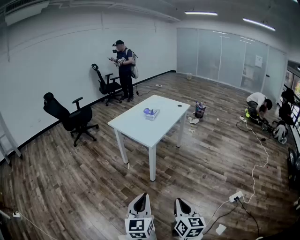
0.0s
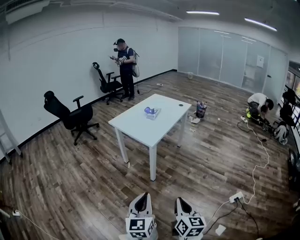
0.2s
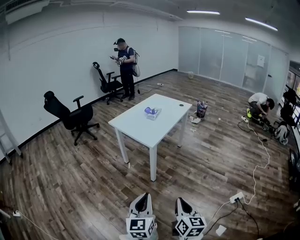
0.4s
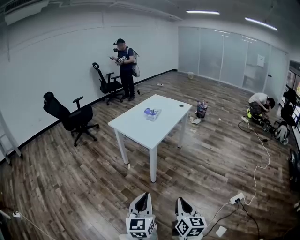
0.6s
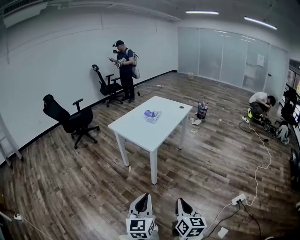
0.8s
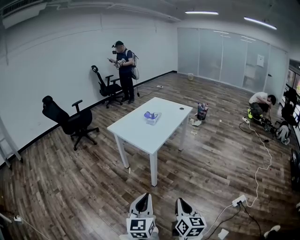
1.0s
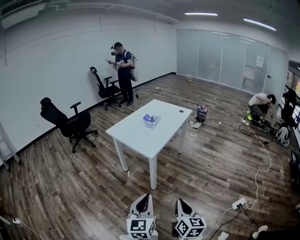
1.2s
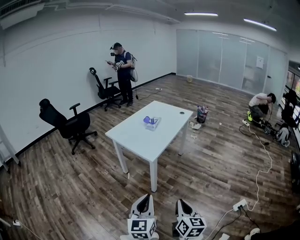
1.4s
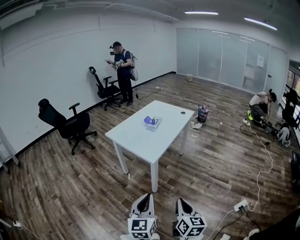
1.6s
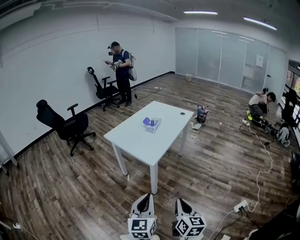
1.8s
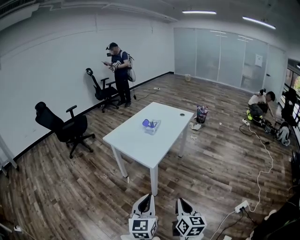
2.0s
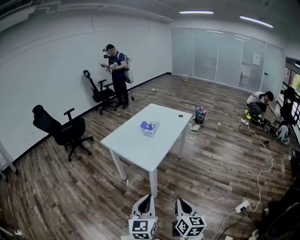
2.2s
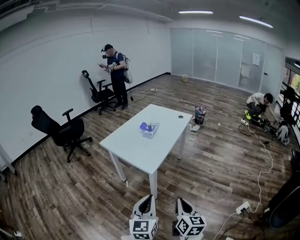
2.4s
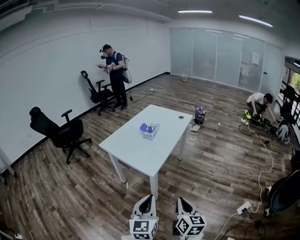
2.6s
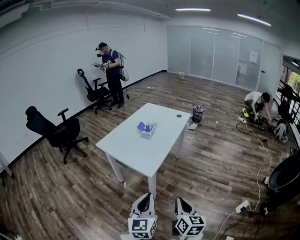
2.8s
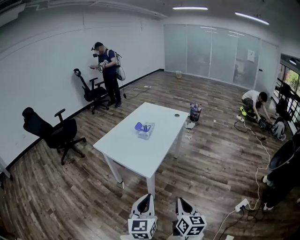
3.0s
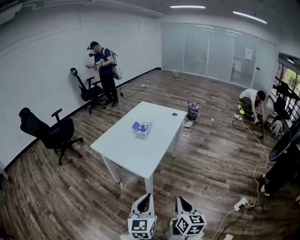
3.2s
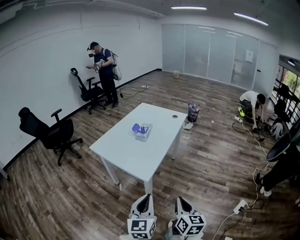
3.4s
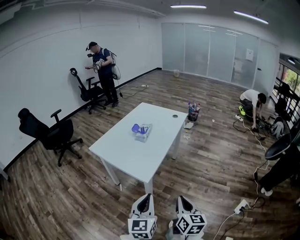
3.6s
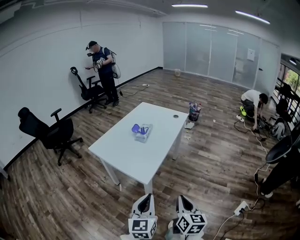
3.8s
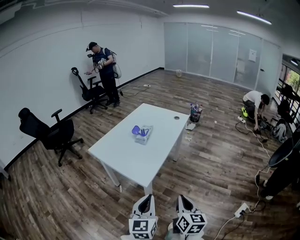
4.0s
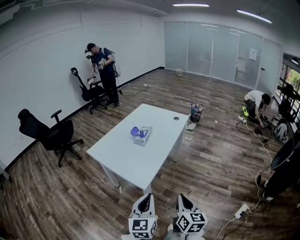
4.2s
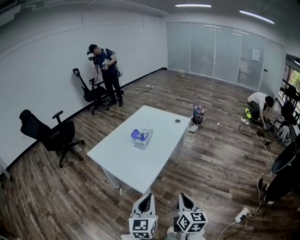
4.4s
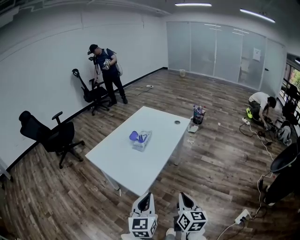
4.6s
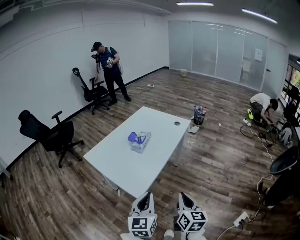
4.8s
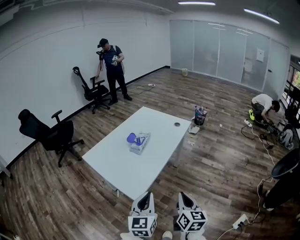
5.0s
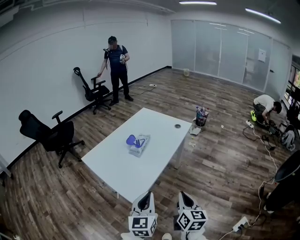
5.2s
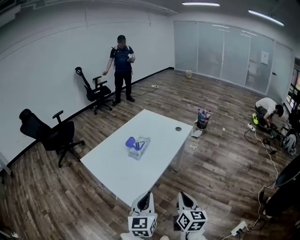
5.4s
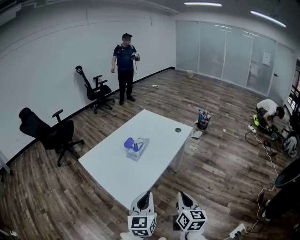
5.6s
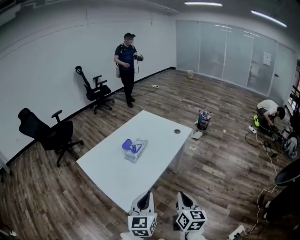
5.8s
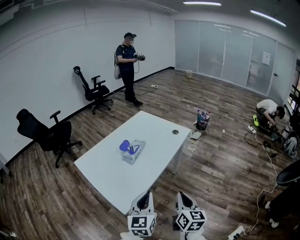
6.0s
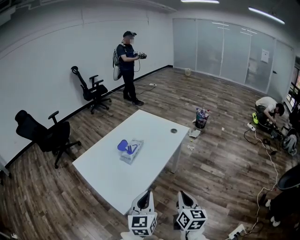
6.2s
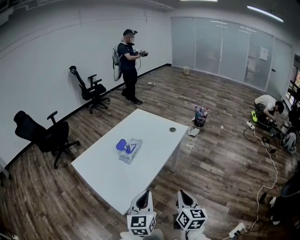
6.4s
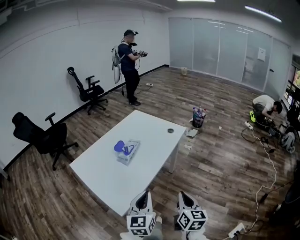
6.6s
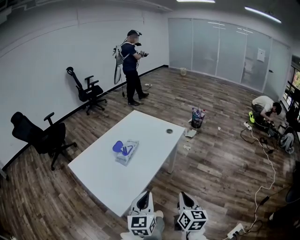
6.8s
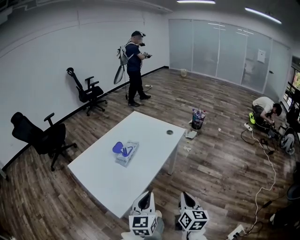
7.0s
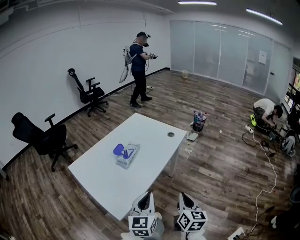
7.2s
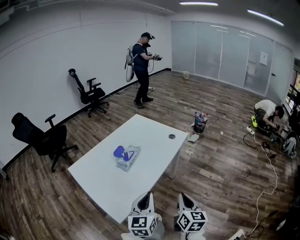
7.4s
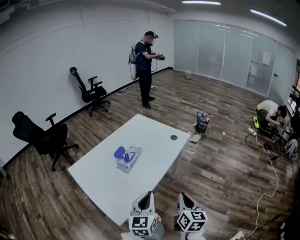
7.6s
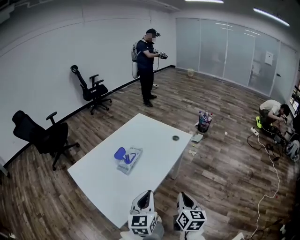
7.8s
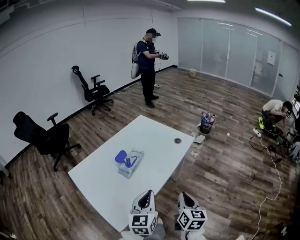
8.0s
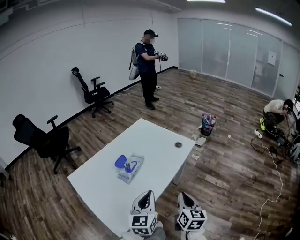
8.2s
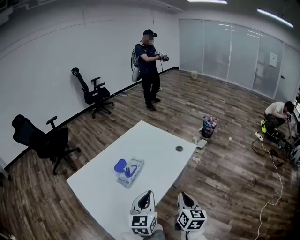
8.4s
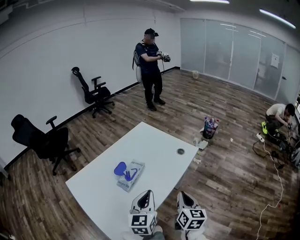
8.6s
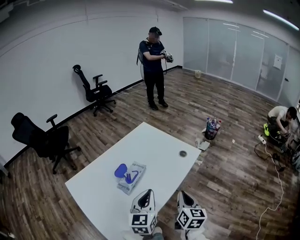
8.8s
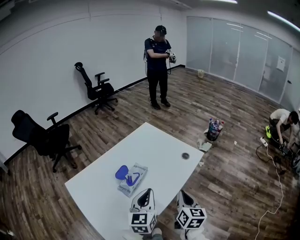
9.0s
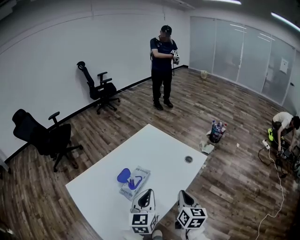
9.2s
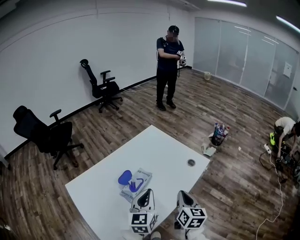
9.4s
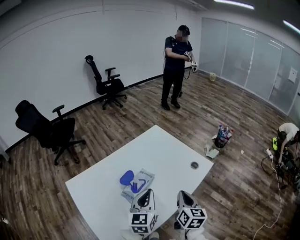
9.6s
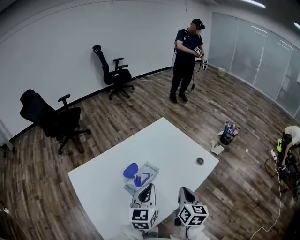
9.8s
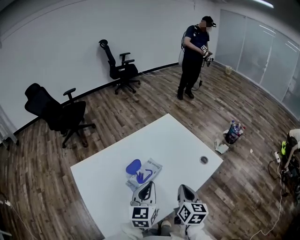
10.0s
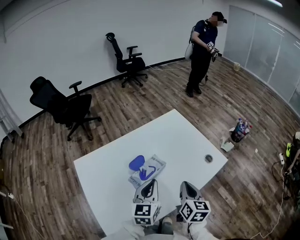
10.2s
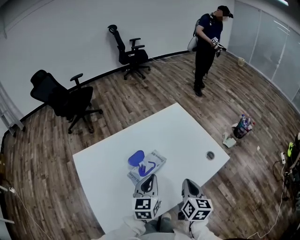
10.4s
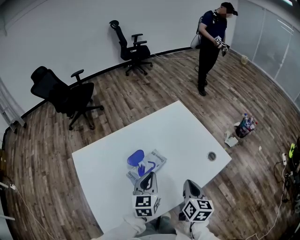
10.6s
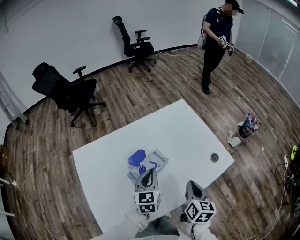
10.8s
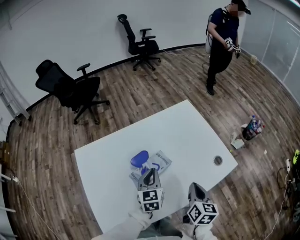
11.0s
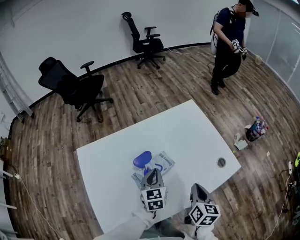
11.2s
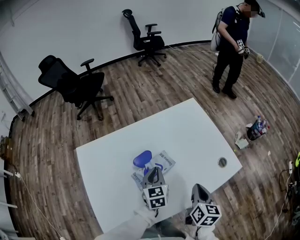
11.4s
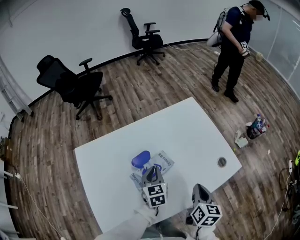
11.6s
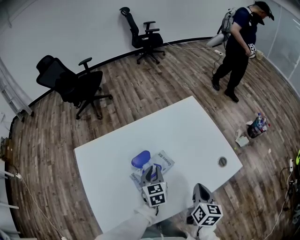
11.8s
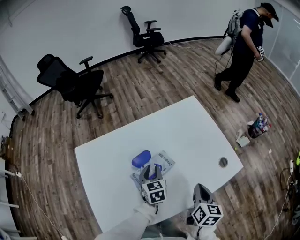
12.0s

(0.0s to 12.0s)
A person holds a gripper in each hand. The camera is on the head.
0.0s - 1.6s: Both grippers travel together forward, some 15 cm.
1.6s - 3.0s: Both grippers move forward, roughly 15 cm.
3.0s - 4.4s: The grippers both shift forward by roughly 10 cm.
4.4s - 6.0s: Both grippers travel together forward and to the right, approximately 20 cm.
6.0s - 7.6s: Both grippers travel together forward, approximately 5 cm.
7.6s - 9.0s: The two grippers go roughly 20 cm forward.
9.0s - 10.4s: The left gripper heads forward, downward and to the left, covering approximately 10 cm. The right gripper moves forward, approximately 10 cm.
10.4s - 12.0s: The left gripper goes roughly 15 cm downward and forward, swivels some 30 degrees, and opens; the right gripper changes place by about 5 cm.

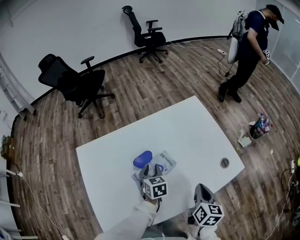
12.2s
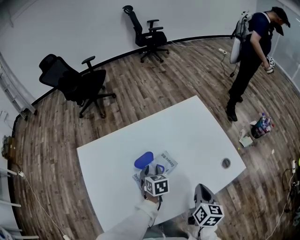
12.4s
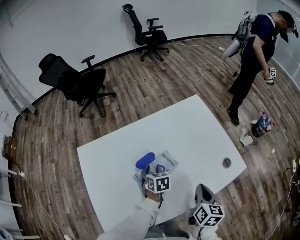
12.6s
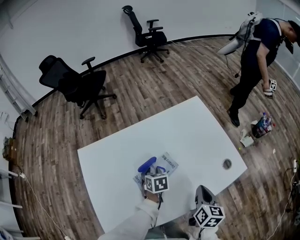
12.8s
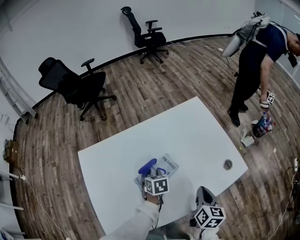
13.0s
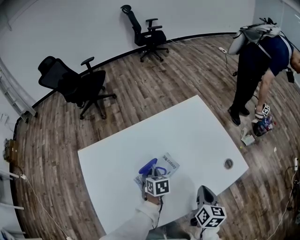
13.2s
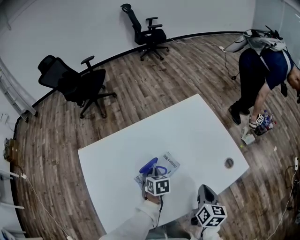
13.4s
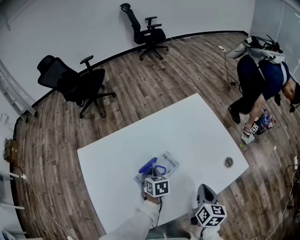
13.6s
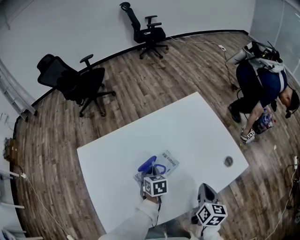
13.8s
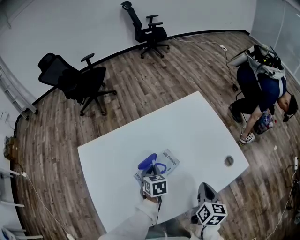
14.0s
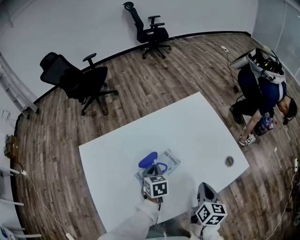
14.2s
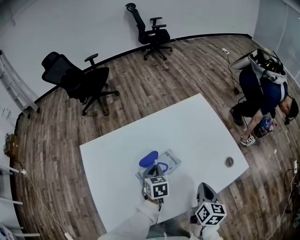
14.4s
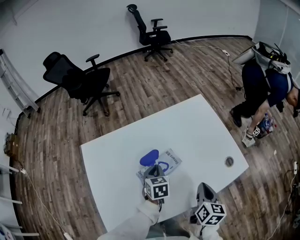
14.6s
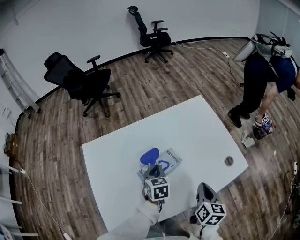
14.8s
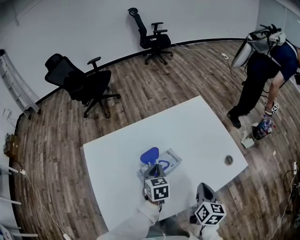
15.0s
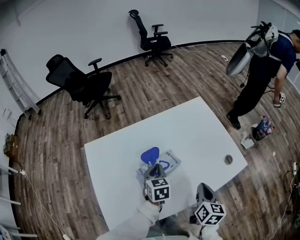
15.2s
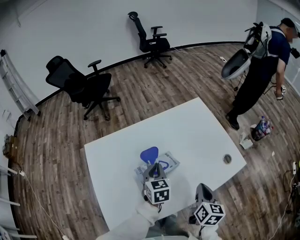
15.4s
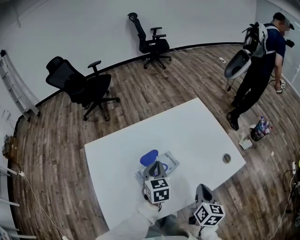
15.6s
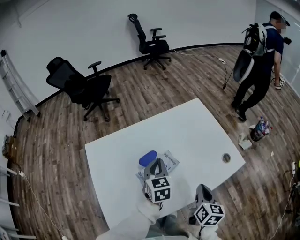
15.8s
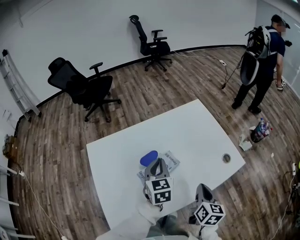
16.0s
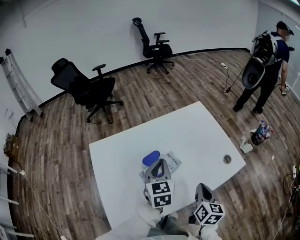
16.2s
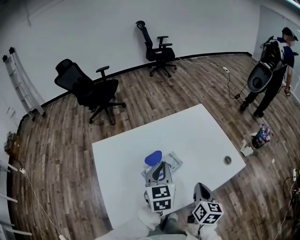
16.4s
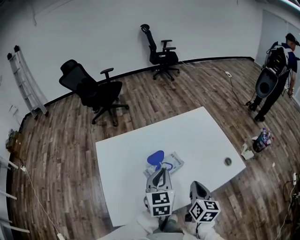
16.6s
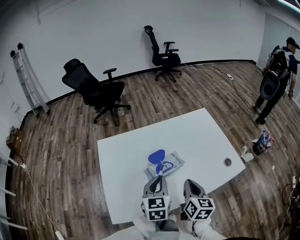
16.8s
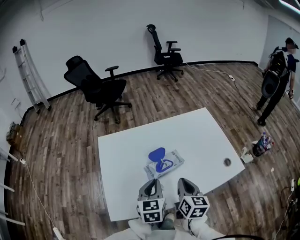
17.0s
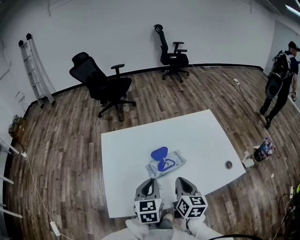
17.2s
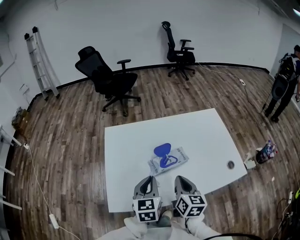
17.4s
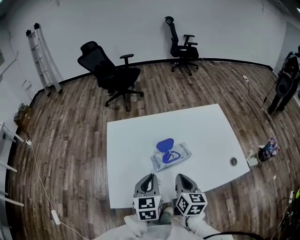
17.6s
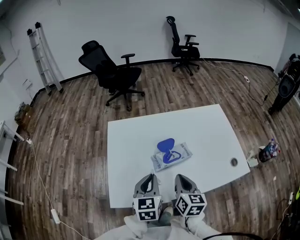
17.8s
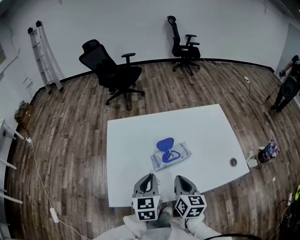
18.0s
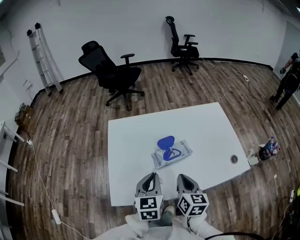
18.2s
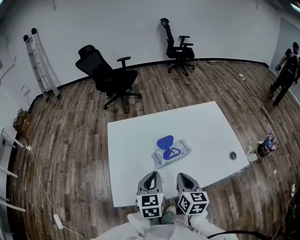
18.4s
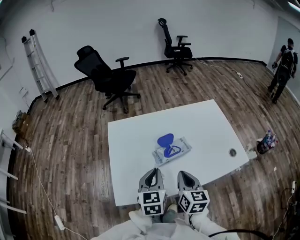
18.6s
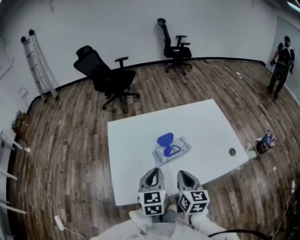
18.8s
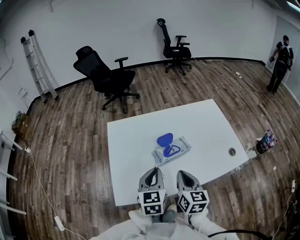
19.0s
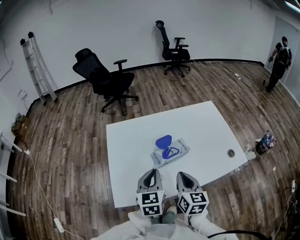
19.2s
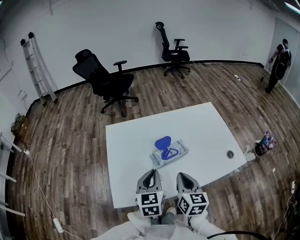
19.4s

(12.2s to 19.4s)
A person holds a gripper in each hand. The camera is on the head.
12.2s - 13.6s: The left gripper closes.
13.6s - 15.0s: The left gripper heads upward, covering about 5 cm.
15.0s - 16.6s: The right gripper shifts approximately 5 cm to the left; the left gripper goes about 15 cm upward and backward, and swivels about 20 degrees.
16.6s - 18.0s: The left gripper is displaced to the left and backward by roughly 10 cm, while the right gripper shifts approximately 10 cm to the left.
18.0s - 19.4s: The grippers move only a little.

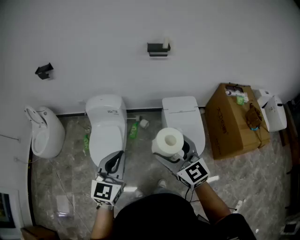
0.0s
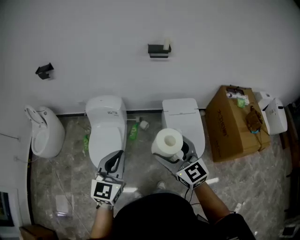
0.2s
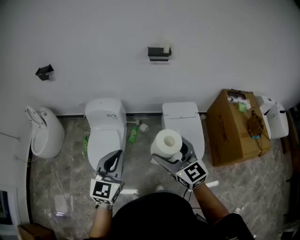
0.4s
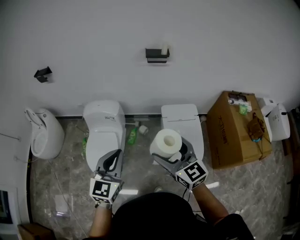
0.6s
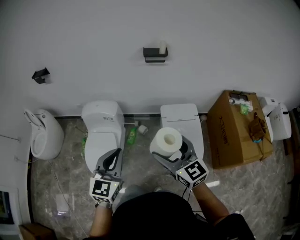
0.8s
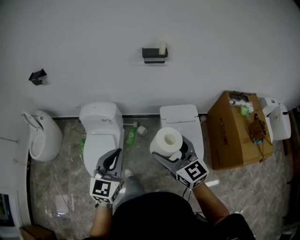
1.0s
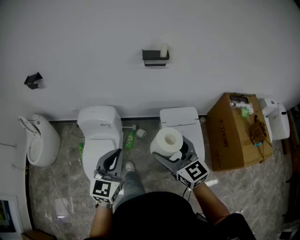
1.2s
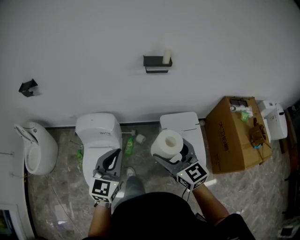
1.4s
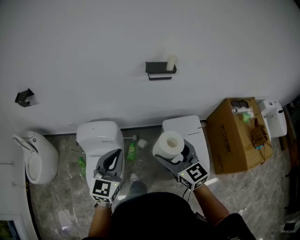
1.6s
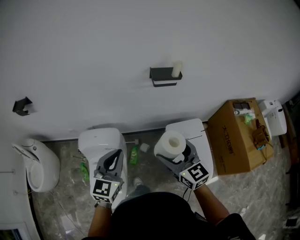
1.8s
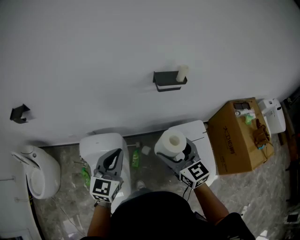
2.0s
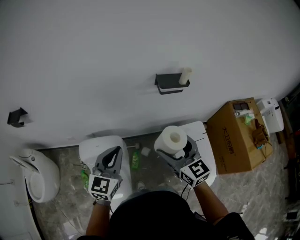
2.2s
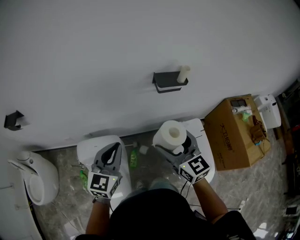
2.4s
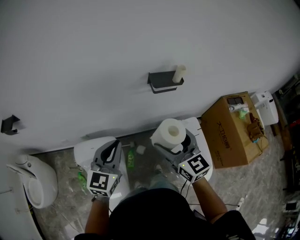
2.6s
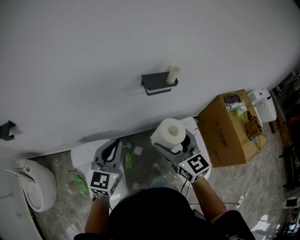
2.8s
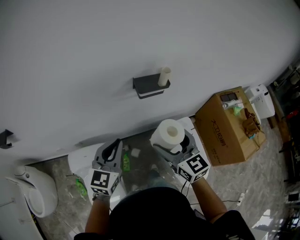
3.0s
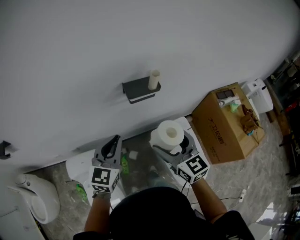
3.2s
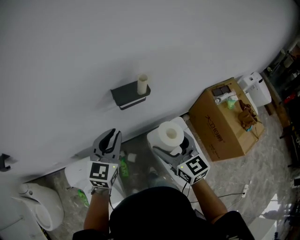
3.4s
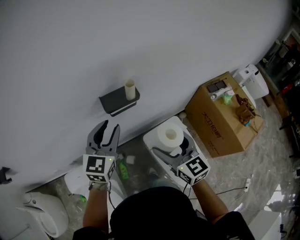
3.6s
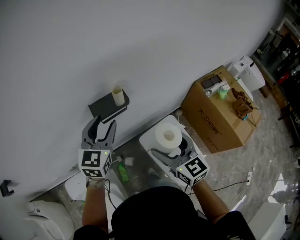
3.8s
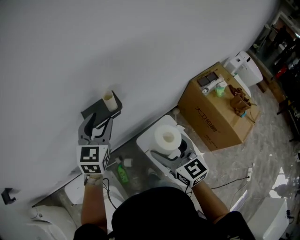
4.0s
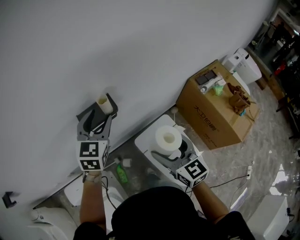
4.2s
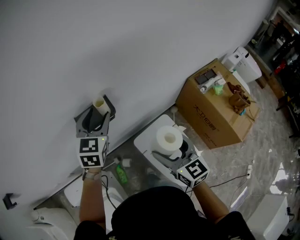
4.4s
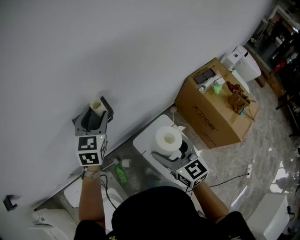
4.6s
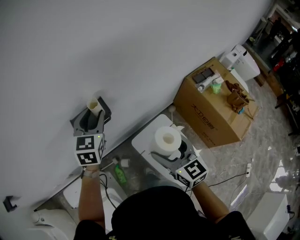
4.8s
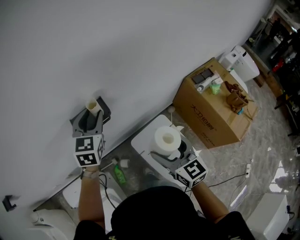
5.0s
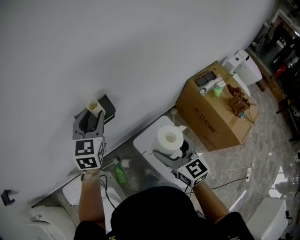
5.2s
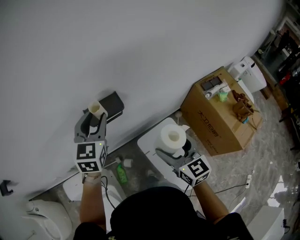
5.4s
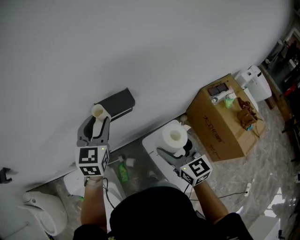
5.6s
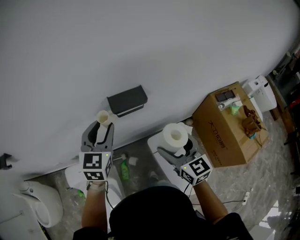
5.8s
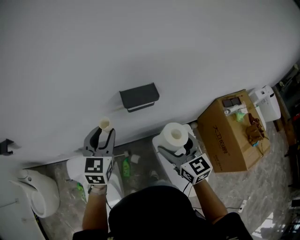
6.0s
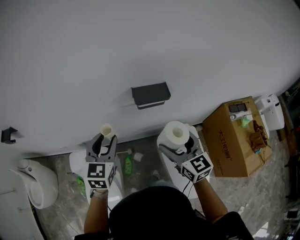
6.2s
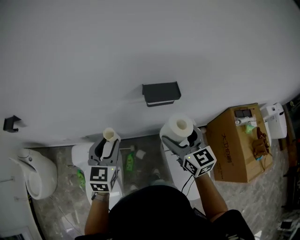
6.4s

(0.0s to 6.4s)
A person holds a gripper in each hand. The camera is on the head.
0.0s - 1.6s: Both grippers travel together forward, about 30 cm.
1.6s - 3.2s: Both grippers move forward, approximately 25 cm.
3.2s - 4.8s: The left gripper heads forward and to the right, covering roughly 30 cm, and opens; the right gripper heads to the right, covering roughly 20 cm.
4.8s - 6.4s: The right gripper is displaced to the left by some 20 cm, and rotates some 20 degrees. The left gripper is displaced to the left and backward by roughly 35 cm, and turns by about 20 degrees.
